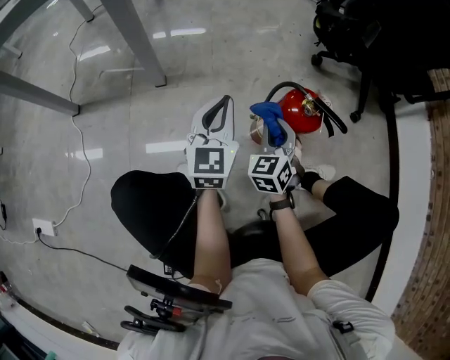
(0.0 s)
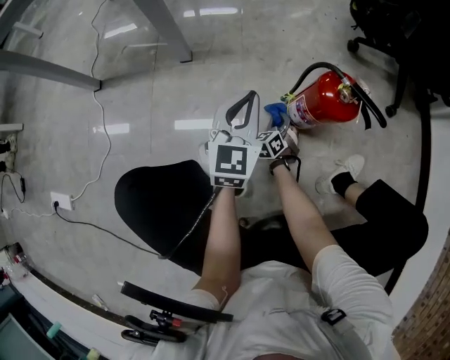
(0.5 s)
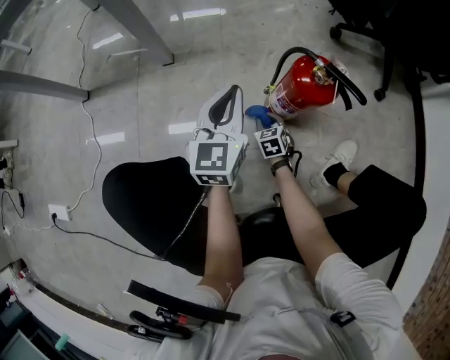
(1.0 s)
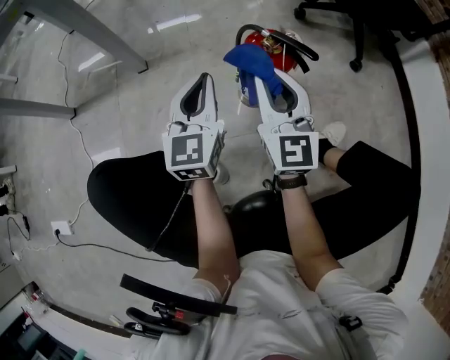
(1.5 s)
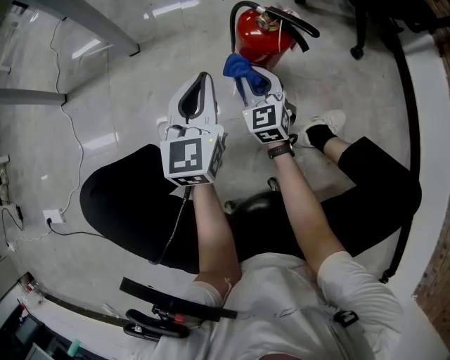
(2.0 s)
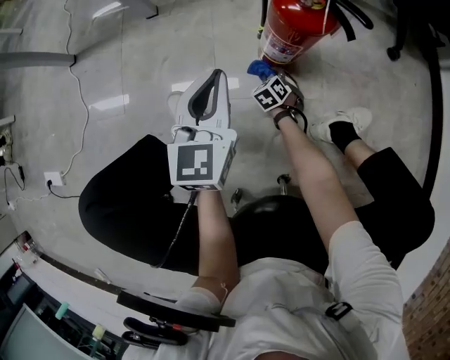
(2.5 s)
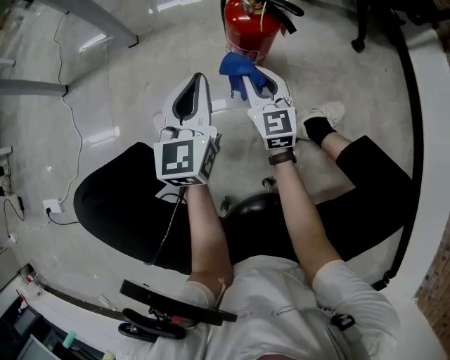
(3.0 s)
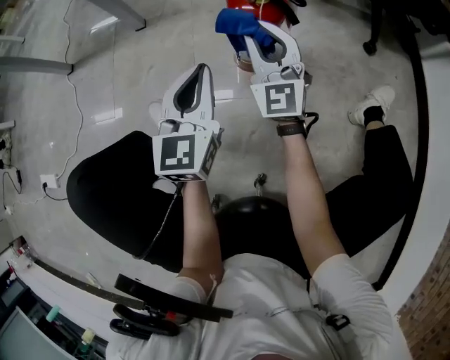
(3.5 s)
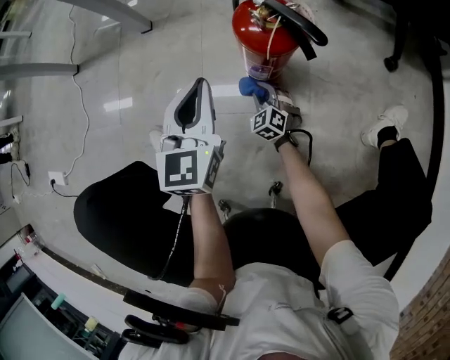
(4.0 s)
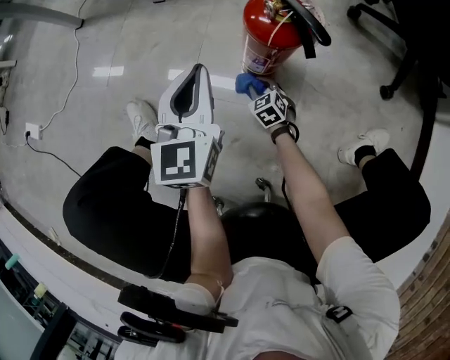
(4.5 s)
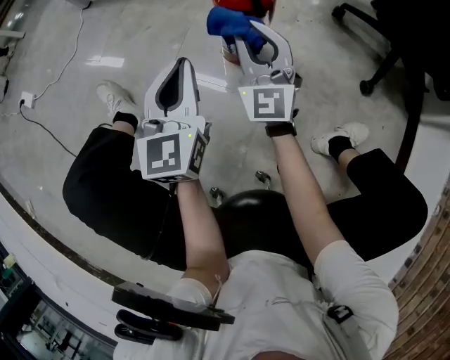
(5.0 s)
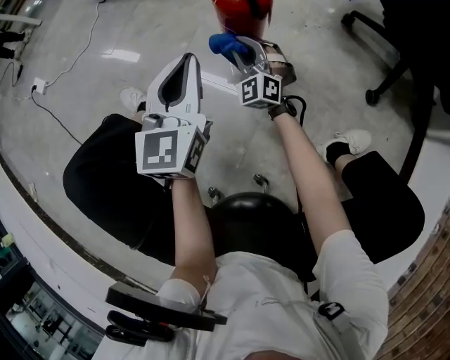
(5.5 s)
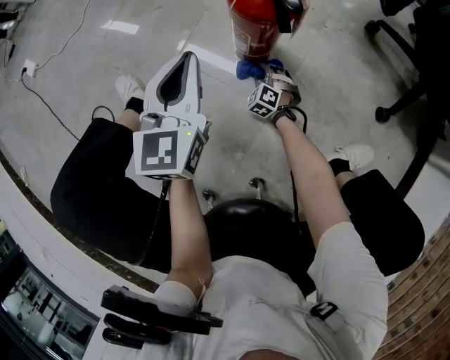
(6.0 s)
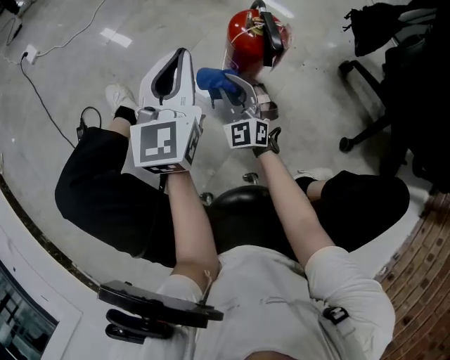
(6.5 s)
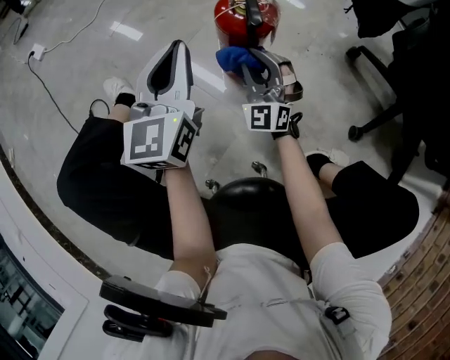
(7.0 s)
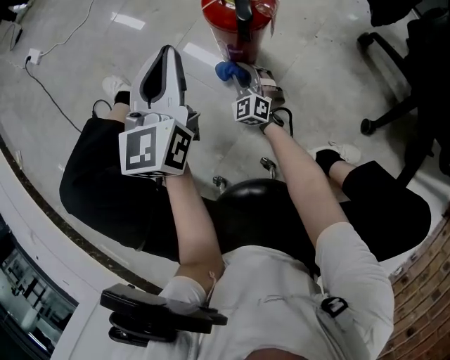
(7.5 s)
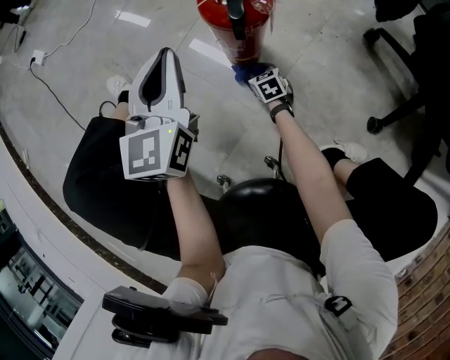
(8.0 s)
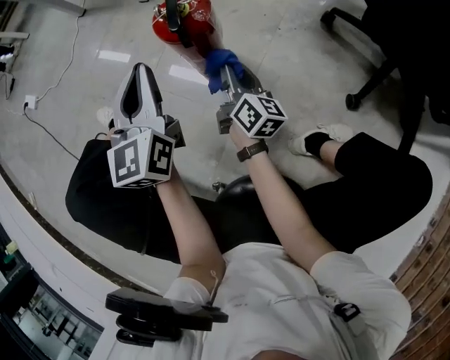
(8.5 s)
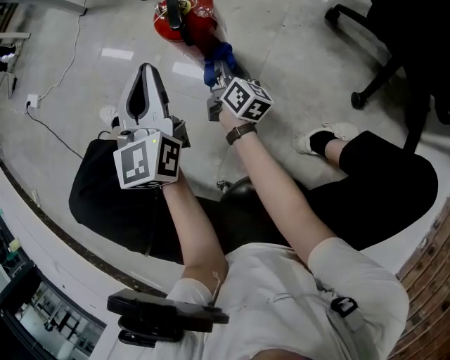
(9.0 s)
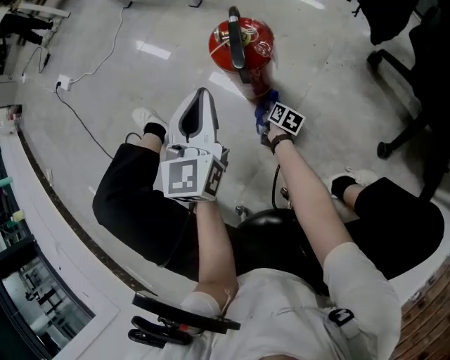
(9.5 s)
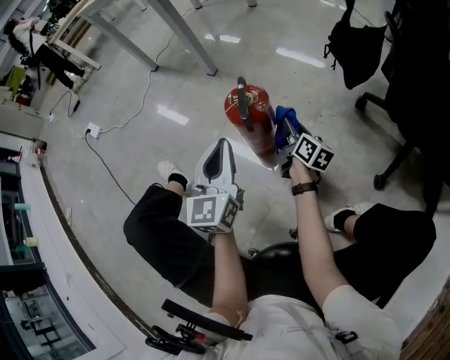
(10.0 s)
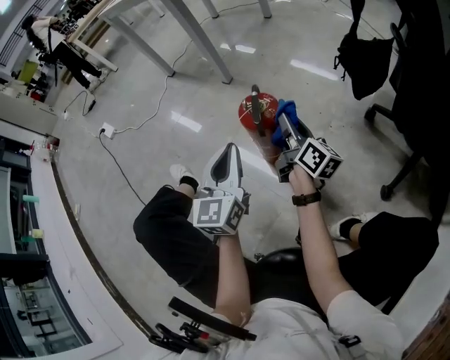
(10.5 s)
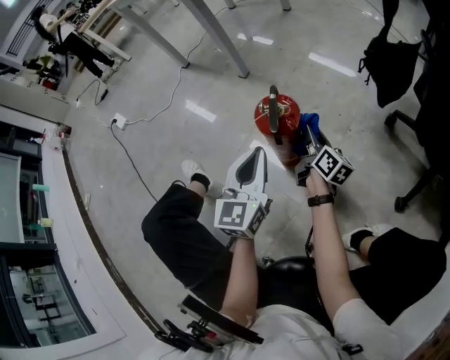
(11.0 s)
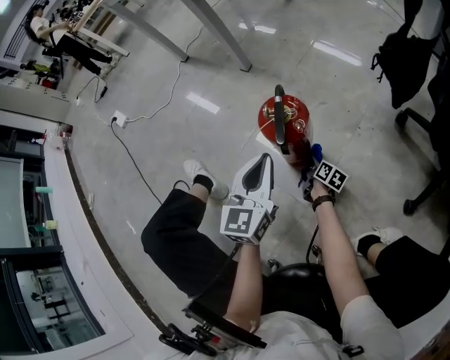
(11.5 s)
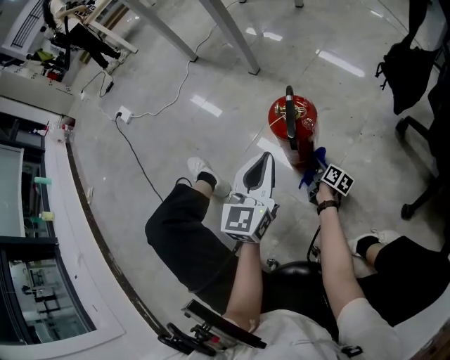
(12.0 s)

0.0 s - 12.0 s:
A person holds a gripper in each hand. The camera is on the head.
0.0 s - 2.0 s: The right gripper swings up and down, roughly 40 cm each way, with 2 reversals, and rotates roughly 20 degrees. The left gripper travels backward and to the right by approximately 10 cm.
2.0 s - 4.0 s: The right gripper swings up and down, about 40 cm each way, with 2 reversals, and turns by some 30 degrees.
4.0 s - 6.0 s: The right gripper travels to the right by about 5 cm, moves some 35 cm upward and comes back, and changes its angle by some 40 degrees, while the left gripper goes about 10 cm backward, and turns by approximately 30 degrees.
6.0 s - 8.0 s: The right gripper reaches roughly 35 cm upward, then returns, and rotates around the line of its fingers by about 40 degrees, clockwise from behind.
8.0 s - 10.0 s: The right gripper goes up and down, roughly 30 cm each way, reversing 2 times, and points its fingers some 40 degrees further upward, while the left gripper ends up approximately 5 cm from where it was.
10.0 s - 12.0 s: The right gripper moves downward, some 20 cm, and rotates some 20 degrees.

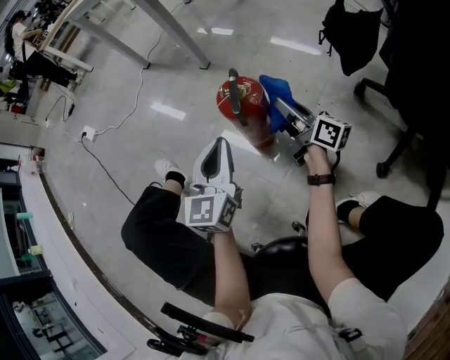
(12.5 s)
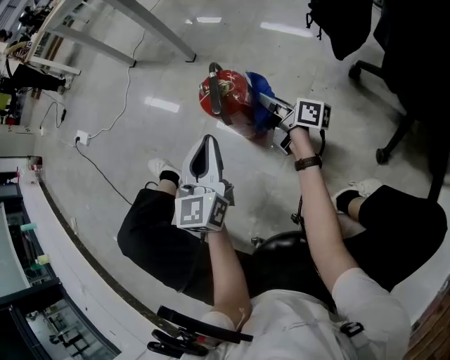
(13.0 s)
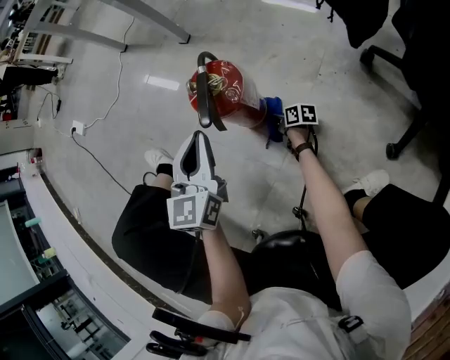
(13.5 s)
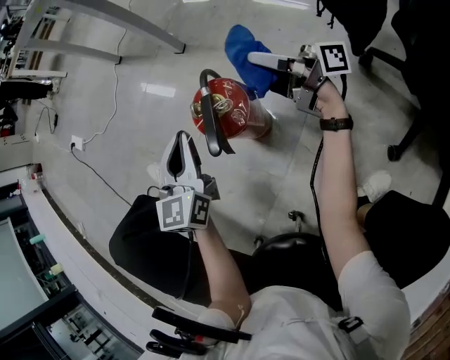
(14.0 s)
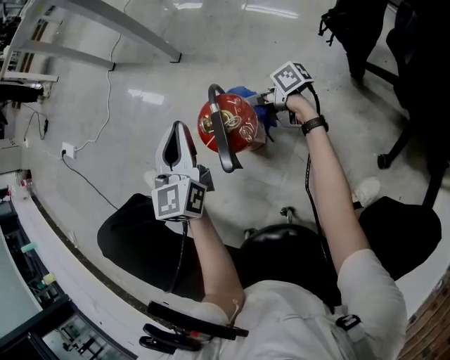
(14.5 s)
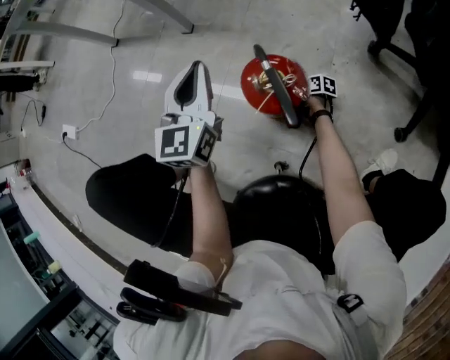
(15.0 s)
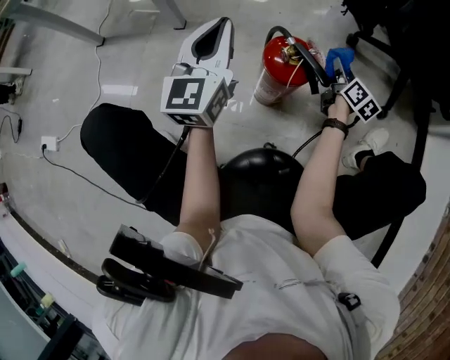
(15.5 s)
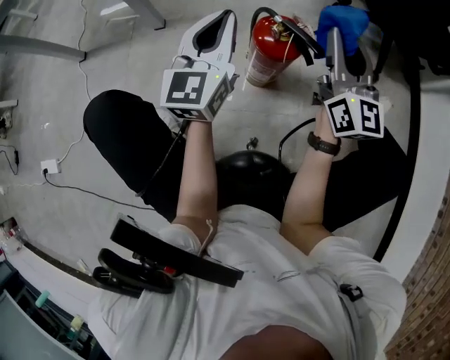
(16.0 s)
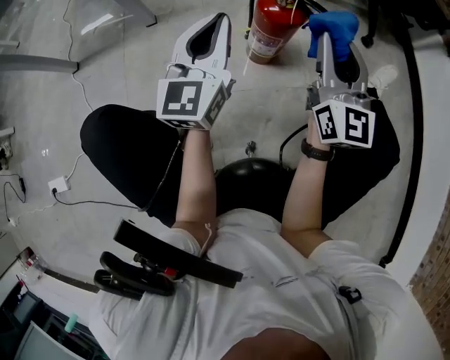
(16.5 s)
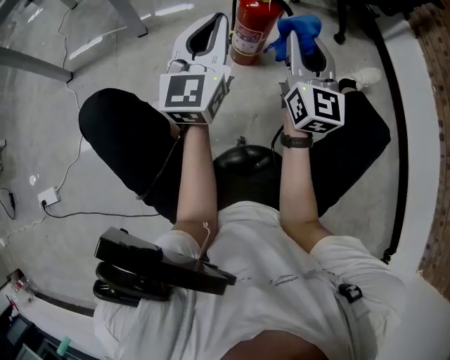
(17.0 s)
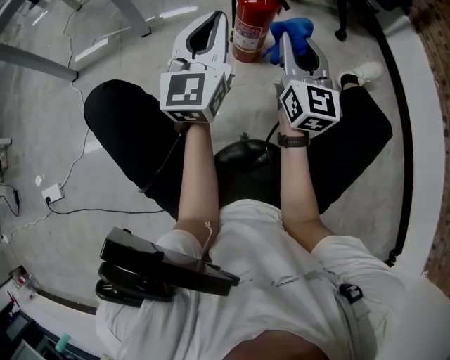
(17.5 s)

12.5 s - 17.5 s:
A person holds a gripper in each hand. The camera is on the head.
12.5 s - 15.0 s: The left gripper heads forward, covering roughly 20 cm, while the right gripper swings up and down, about 40 cm each way, with 2 reversals, and tips its fingers downward by approximately 50 degrees.
15.0 s - 17.5 s: The left gripper moves some 20 cm, and rotates about 40 degrees. Meanwhile the right gripper travels upward by roughly 50 cm, and angles its fingers upward, by approximately 40 degrees.

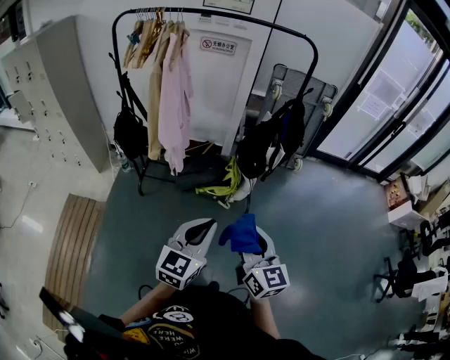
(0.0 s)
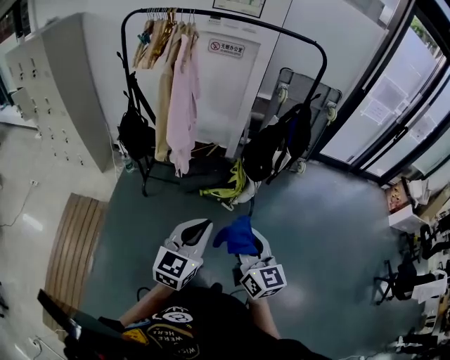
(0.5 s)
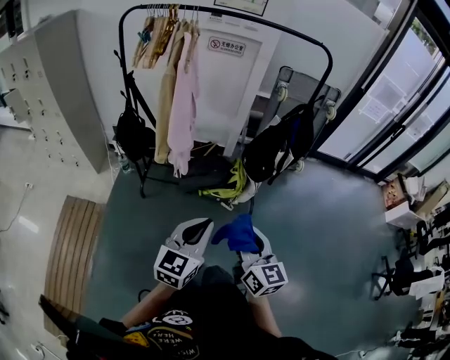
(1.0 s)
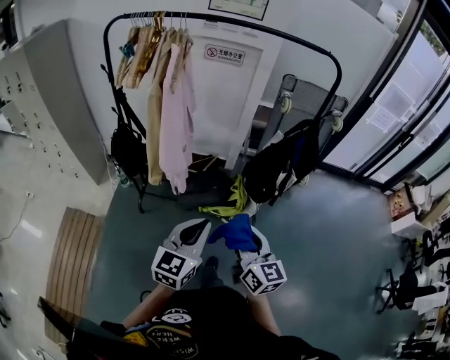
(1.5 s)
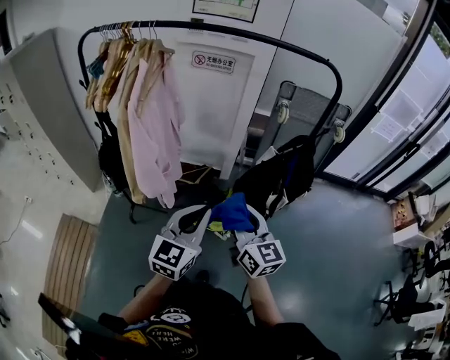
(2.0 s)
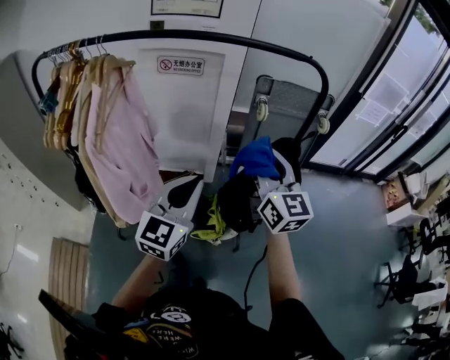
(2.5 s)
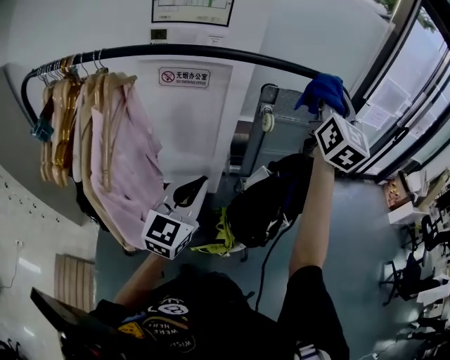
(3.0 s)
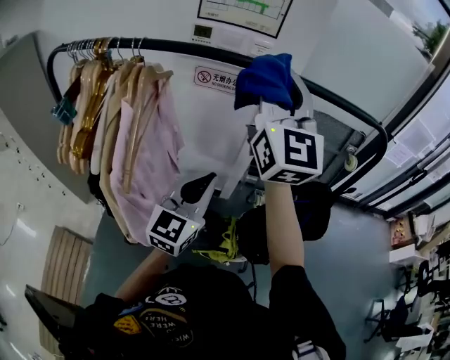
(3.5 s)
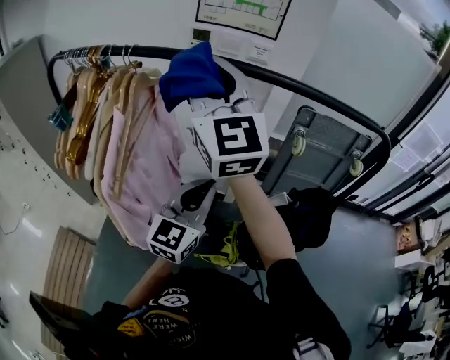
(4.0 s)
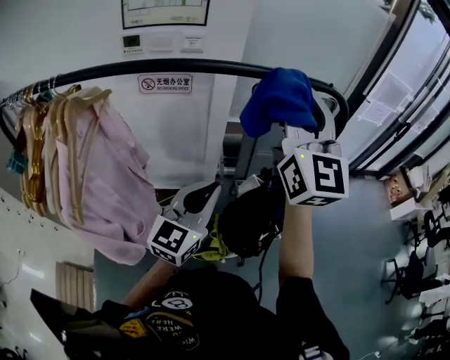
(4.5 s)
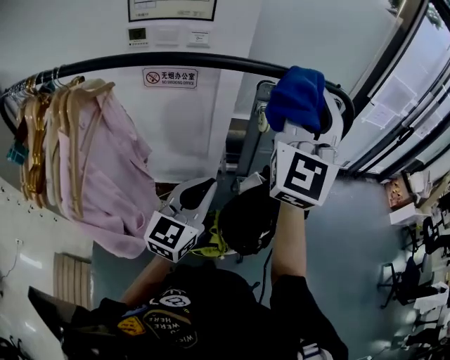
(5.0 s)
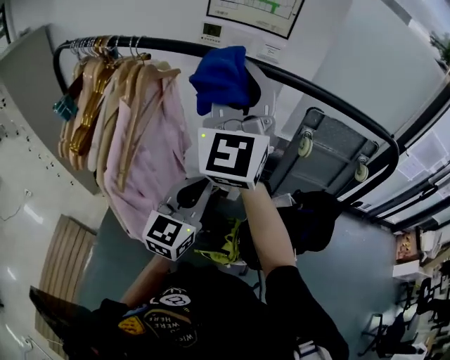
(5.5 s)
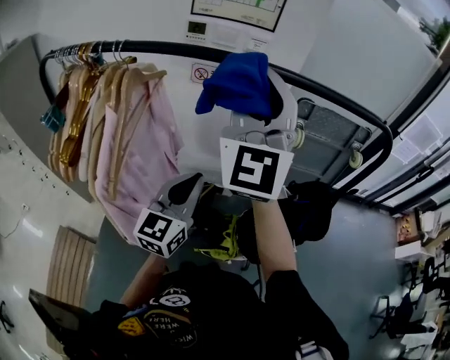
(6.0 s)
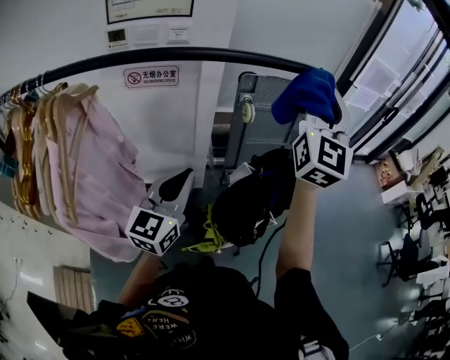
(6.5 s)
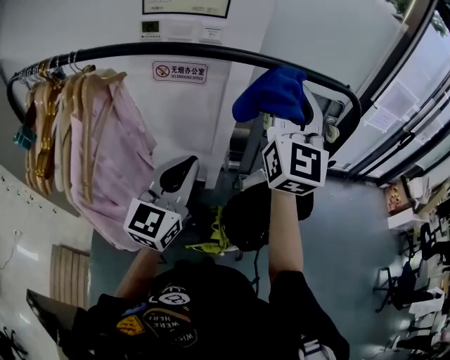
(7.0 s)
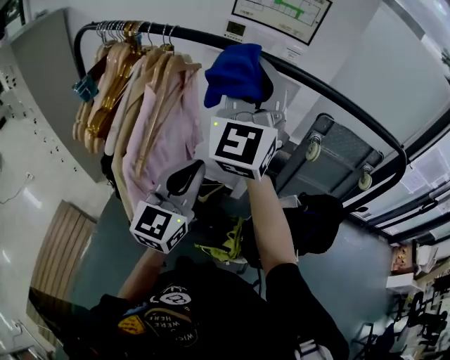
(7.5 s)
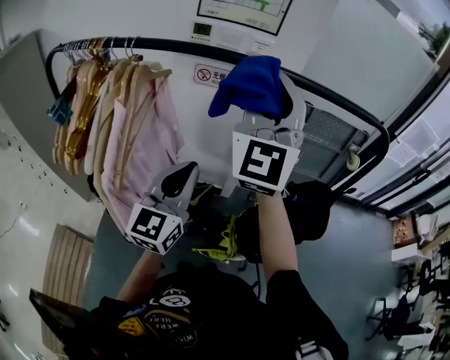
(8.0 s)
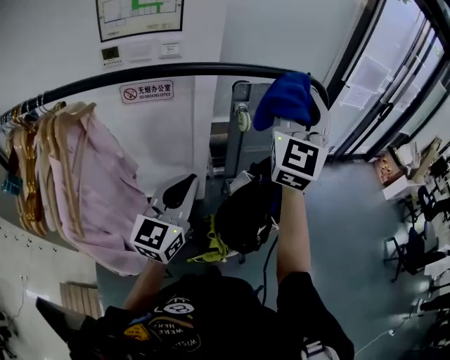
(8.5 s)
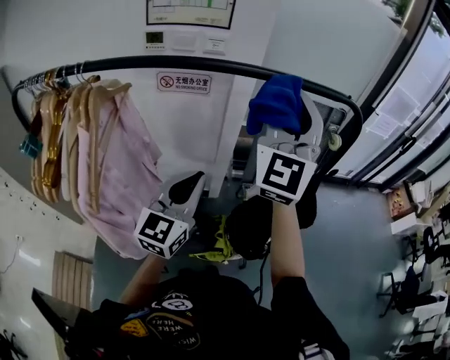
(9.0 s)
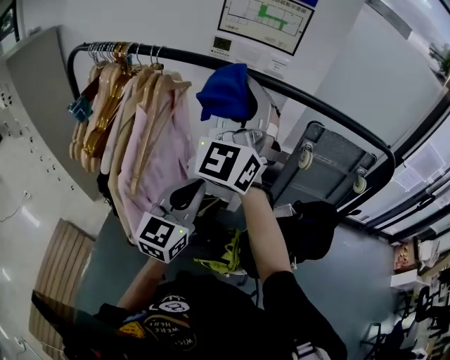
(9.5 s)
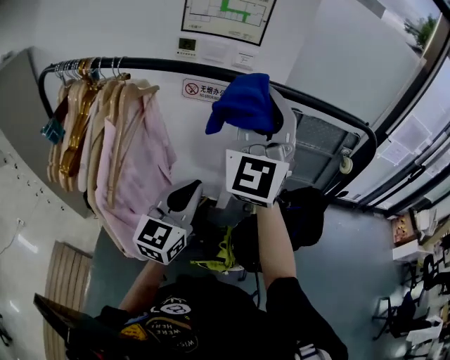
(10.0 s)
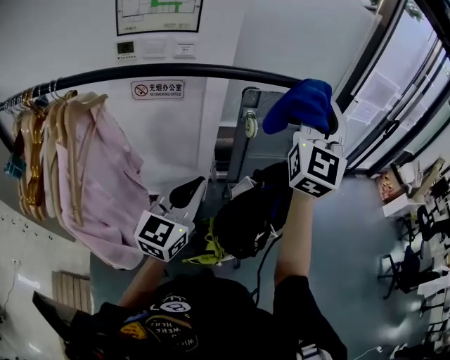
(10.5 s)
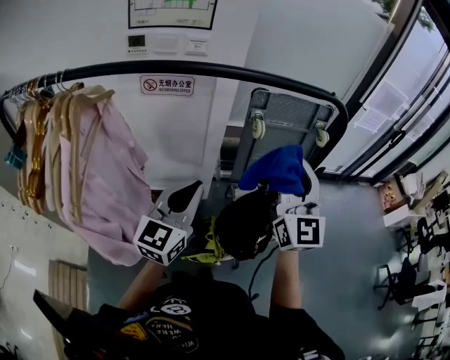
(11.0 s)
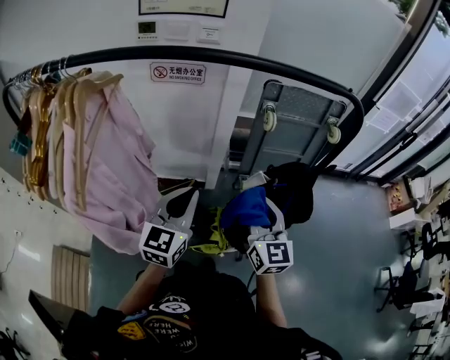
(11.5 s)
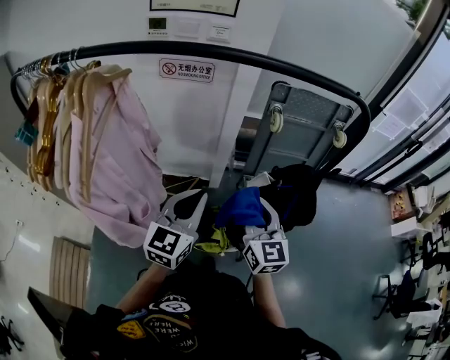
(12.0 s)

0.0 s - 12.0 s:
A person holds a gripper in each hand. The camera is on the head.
0.0 s - 2.0 s: Both grippers move forward, about 35 cm.
2.0 s - 4.0 s: The left gripper moves roughly 30 cm, while the right gripper changes place by approximately 50 cm, and swivels some 40 degrees.
4.0 s - 6.0 s: The right gripper turns by about 30 degrees.
10.0 s - 12.0 s: The left gripper is displaced to the right and downward by approximately 10 cm, while the right gripper goes approximately 35 cm downward and to the right, and turns by roughly 50 degrees.
